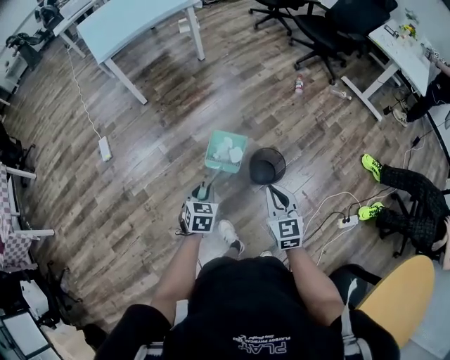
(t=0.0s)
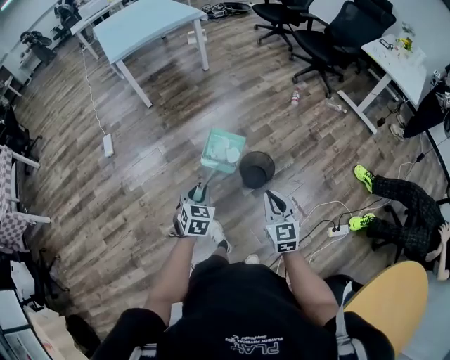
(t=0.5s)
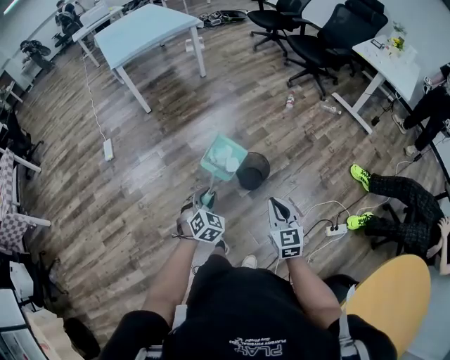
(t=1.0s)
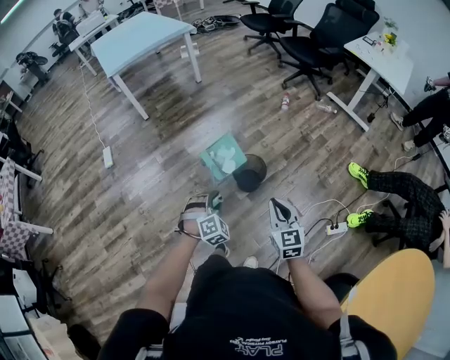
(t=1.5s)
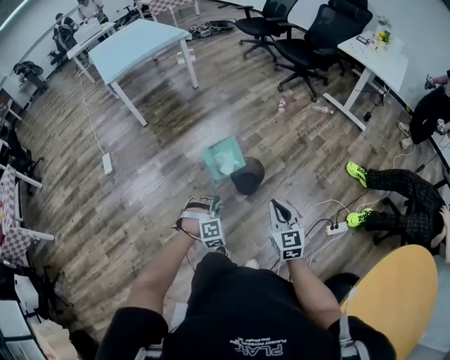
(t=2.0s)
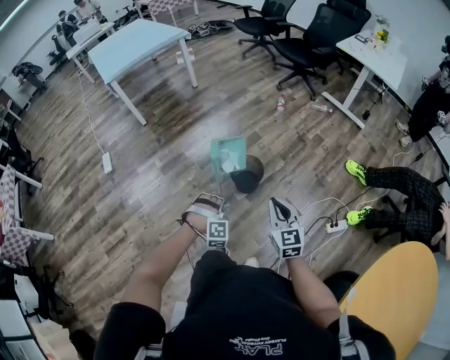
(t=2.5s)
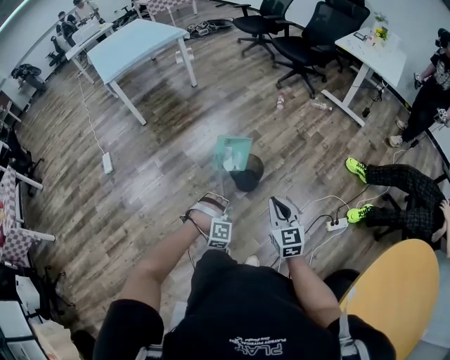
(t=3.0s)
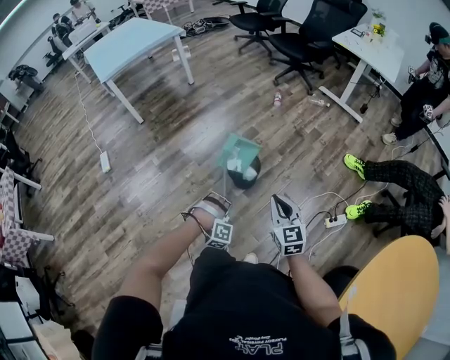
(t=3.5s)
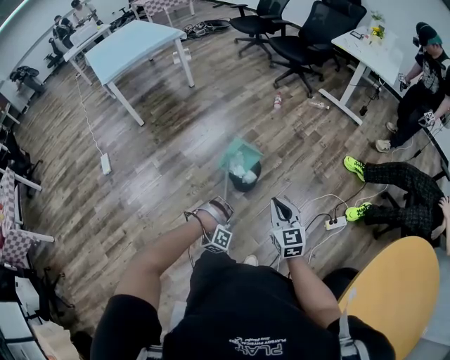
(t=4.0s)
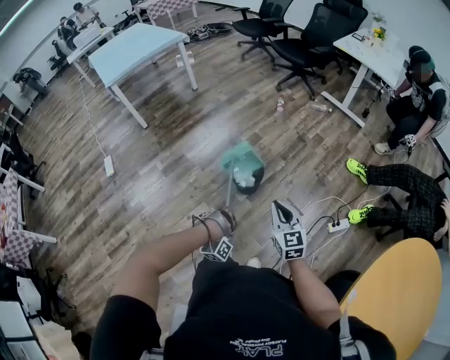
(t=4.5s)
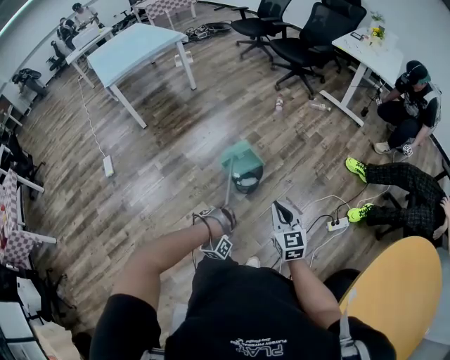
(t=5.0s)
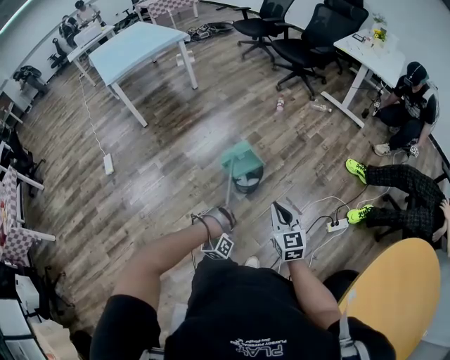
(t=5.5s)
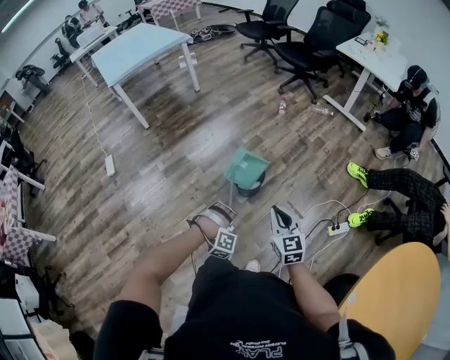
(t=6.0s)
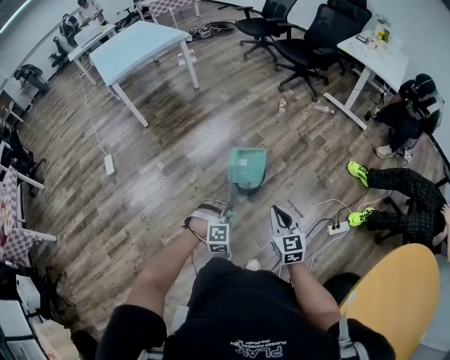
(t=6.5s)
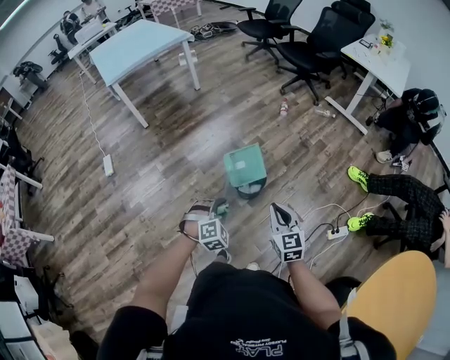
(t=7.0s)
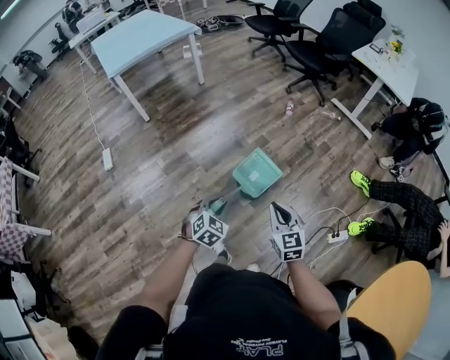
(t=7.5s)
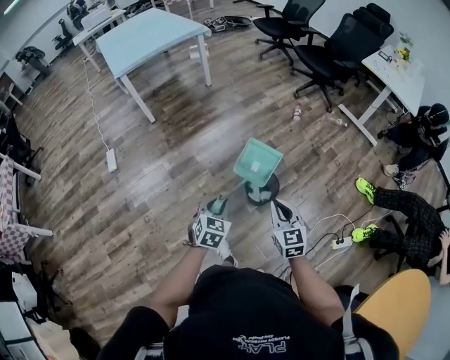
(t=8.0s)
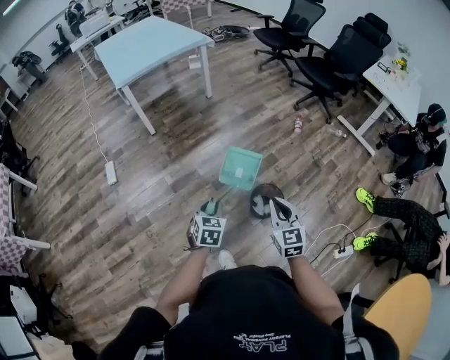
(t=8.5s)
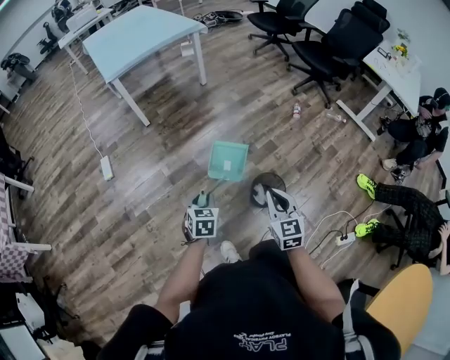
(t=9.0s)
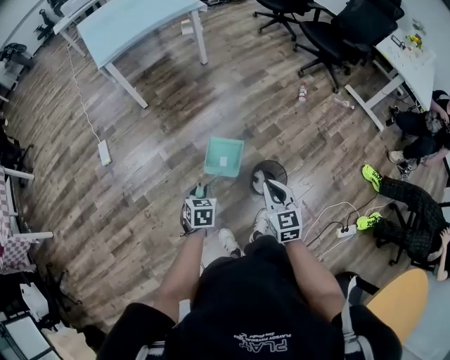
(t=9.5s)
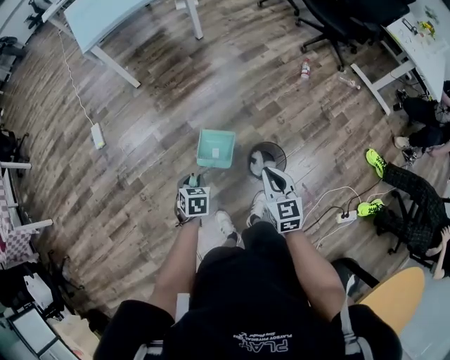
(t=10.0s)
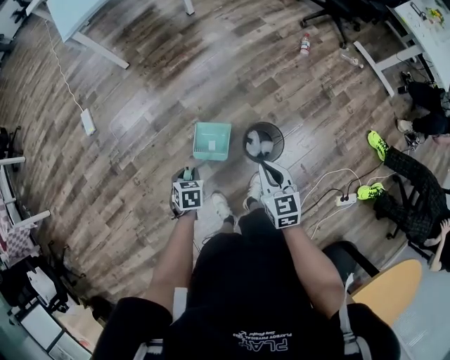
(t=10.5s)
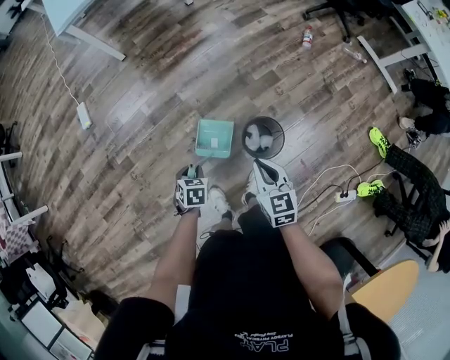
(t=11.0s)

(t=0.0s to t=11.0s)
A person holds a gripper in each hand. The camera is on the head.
t=0.0s - t=2.0s: The two grippers go some 20 cm backward and to the right. The left gripper rotates around the line of its fingers by approximately 70 degrees, clockwise from behind.
t=2.0s - t=3.5s: The left gripper moves backward and downward, approximately 5 cm, and turns by about 40 degrees.
t=3.5s - t=5.5s: The left gripper ends up about 5 cm from where it was, and swivels approximately 30 degrees.
t=5.5s - t=7.5s: The left gripper is displaced forward and upward by roughly 20 cm, and rotates around the line of its fingers by some 110 degrees, counterclockwise from behind. Meanwhile the right gripper heads forward and to the left, covering roughly 10 cm.
t=7.5s - t=9.0s: The right gripper shifts approximately 20 cm forward and to the left. The left gripper goes approximately 25 cm to the left and forward, and turns by some 40 degrees.
t=9.0s - t=11.0s: The left gripper shifts about 20 cm downward, and changes its angle by about 20 degrees. The right gripper is displaced downward and forward by roughly 15 cm.

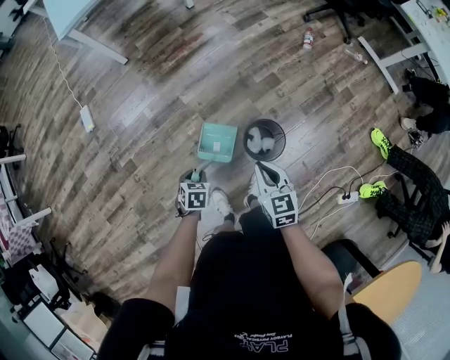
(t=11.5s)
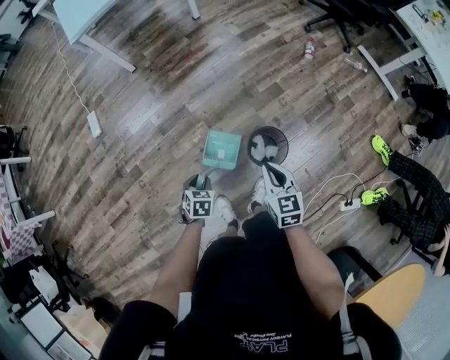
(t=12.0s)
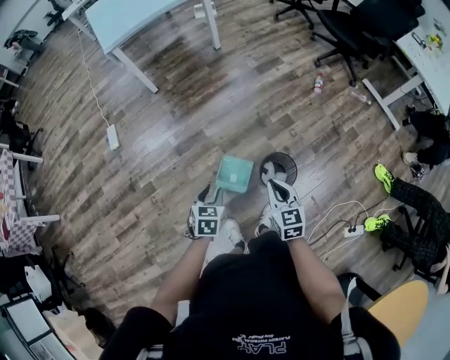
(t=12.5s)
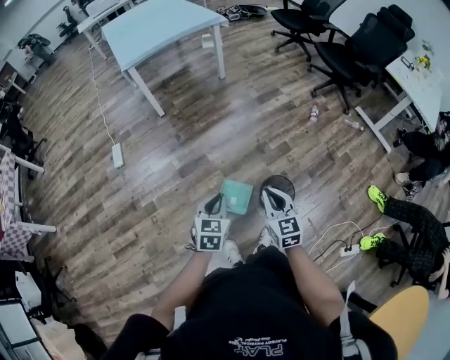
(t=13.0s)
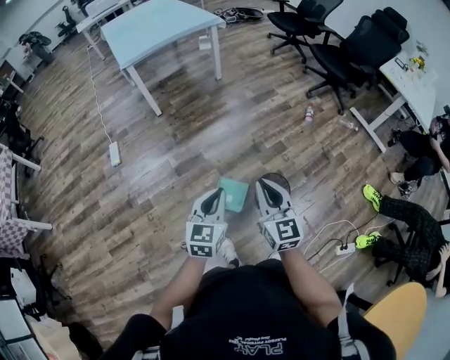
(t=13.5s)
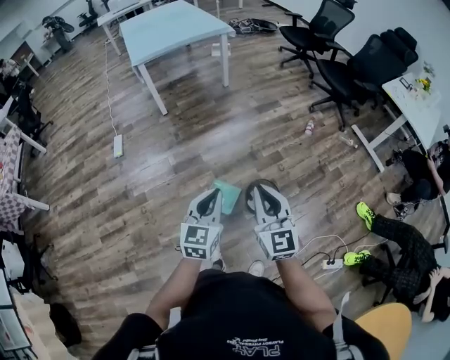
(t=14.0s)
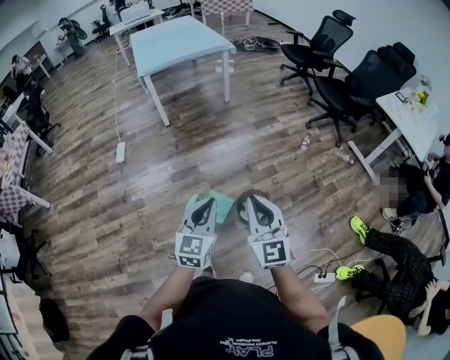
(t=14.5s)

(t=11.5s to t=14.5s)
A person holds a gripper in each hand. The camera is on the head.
t=11.5s - t=13.0s: The right gripper is displaced upward and to the left by some 15 cm; the left gripper goes about 25 cm upward, and tilts its fingers roughly 30 degrees upward.
t=13.0s - t=14.5s: The grippers both shift upward, backward and to the right by approximately 25 cm. The right gripper turns by about 20 degrees. The left gripper changes its angle by about 20 degrees.

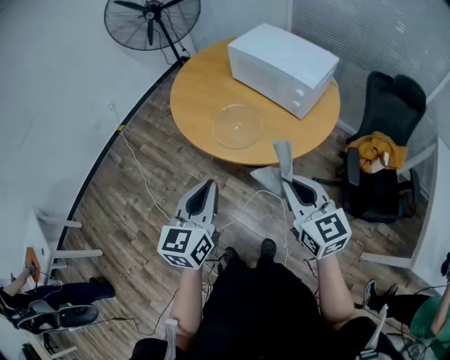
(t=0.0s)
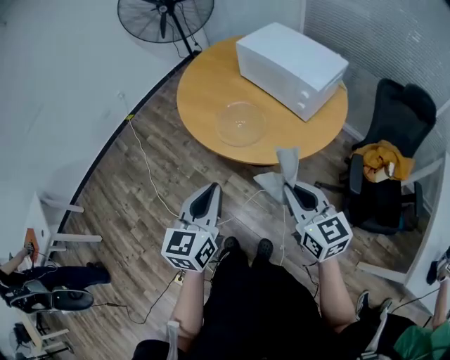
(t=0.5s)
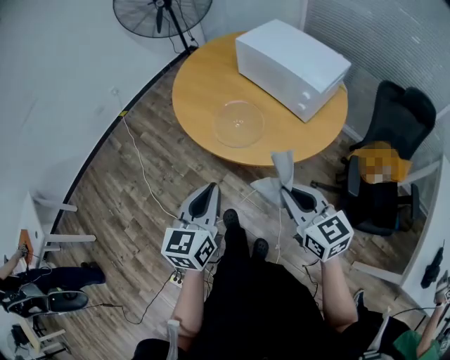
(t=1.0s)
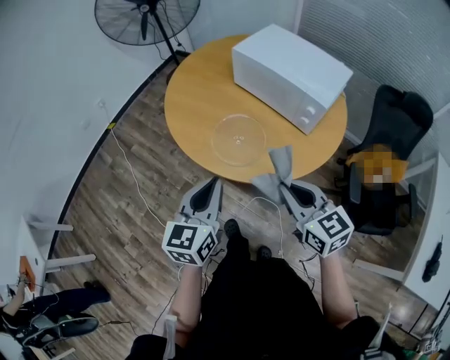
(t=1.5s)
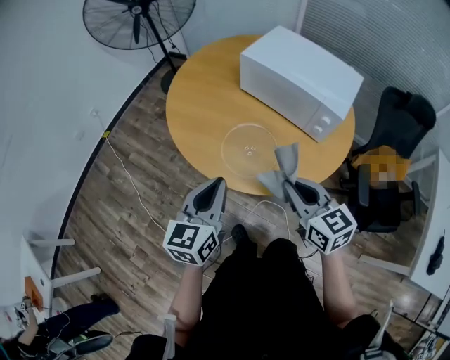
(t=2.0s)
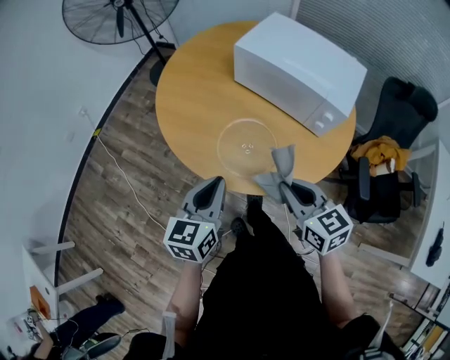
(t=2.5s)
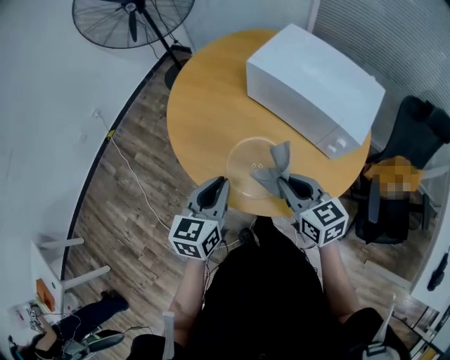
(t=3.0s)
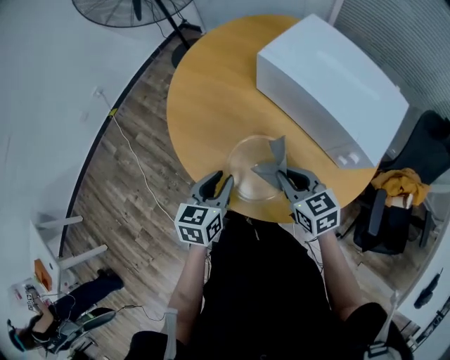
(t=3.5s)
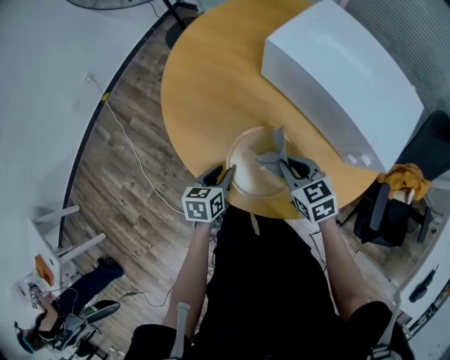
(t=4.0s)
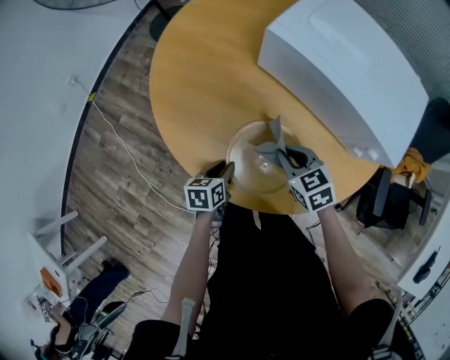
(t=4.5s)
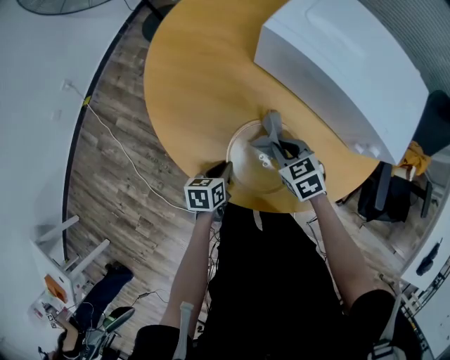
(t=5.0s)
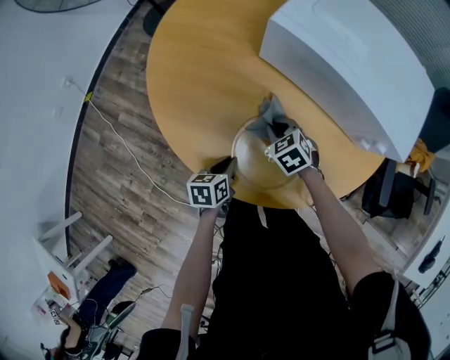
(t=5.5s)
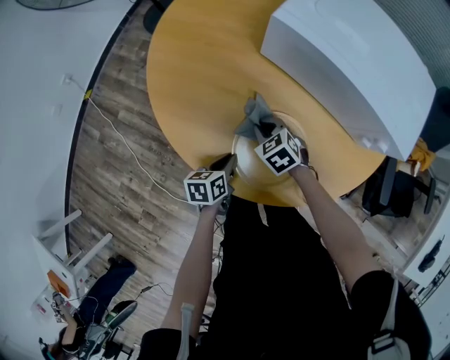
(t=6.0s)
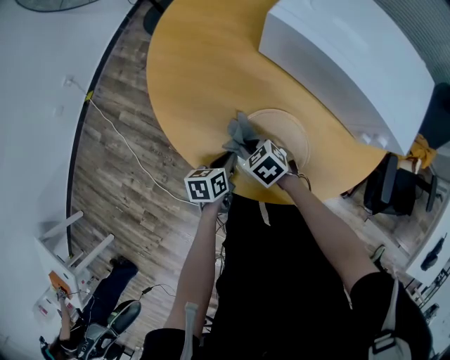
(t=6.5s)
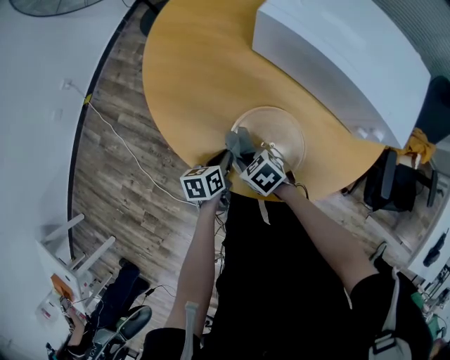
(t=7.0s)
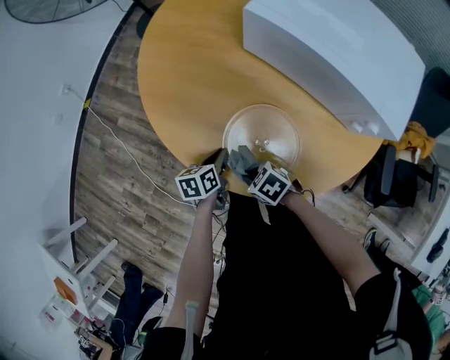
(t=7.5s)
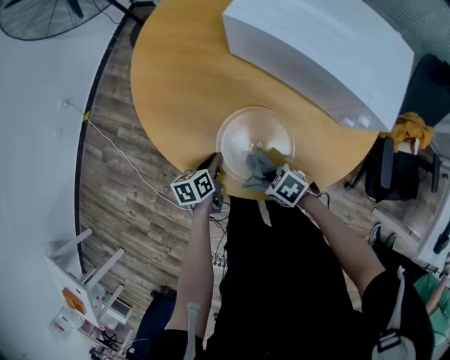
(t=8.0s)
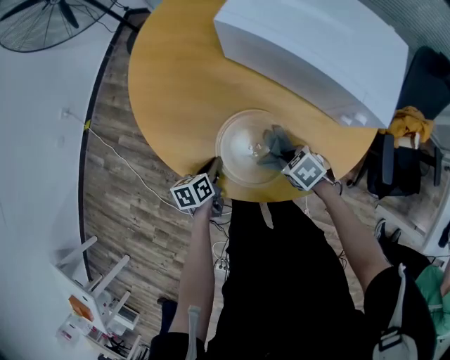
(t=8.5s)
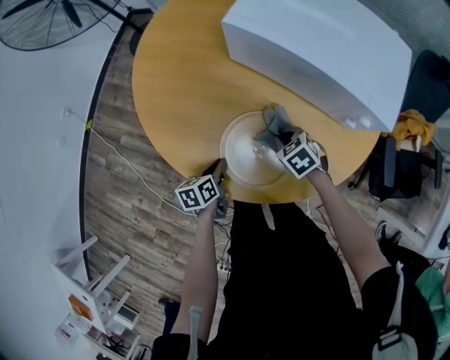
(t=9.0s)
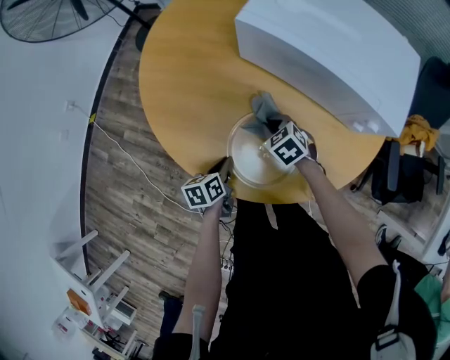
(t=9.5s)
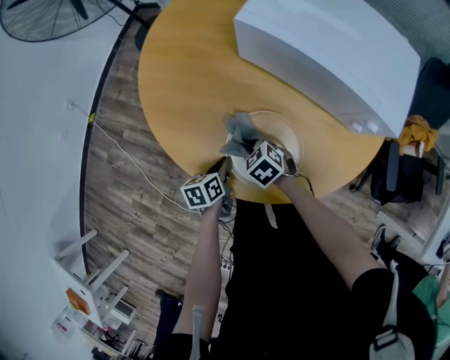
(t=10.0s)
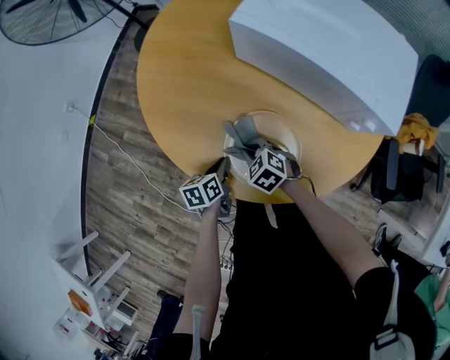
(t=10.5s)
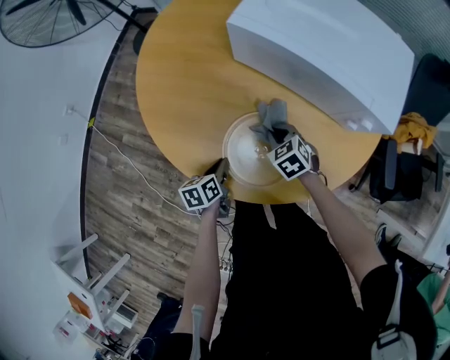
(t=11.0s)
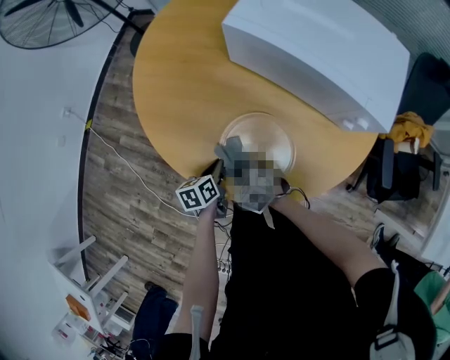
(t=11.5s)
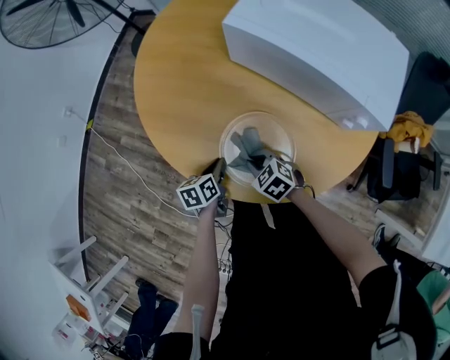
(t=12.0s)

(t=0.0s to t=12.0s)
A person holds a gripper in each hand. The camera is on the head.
t=0.0s - t=2.0s: The two grippers go some 20 cm forward.
t=2.0s - t=4.0s: The right gripper is displaced forward and downward by approximately 30 cm, and rotates roughly 20 degrees, while the left gripper shifts some 30 cm downward and forward, angles its fingers downward, by approximately 30 degrees, and opens.
t=4.0s - t=6.0s: The left gripper heads downward, covering some 5 cm. The right gripper goes about 15 cm downward, to the left and forward.
t=6.0s - t=8.0s: The right gripper changes place by approximately 20 cm, and swivels some 30 degrees.
t=8.0s - t=10.0s: The right gripper changes place by about 15 cm, and rotates approximately 20 degrees.
t=10.0s - t=12.0s: The right gripper swings left and right, some 15 cm each way, with 2 reversals.
